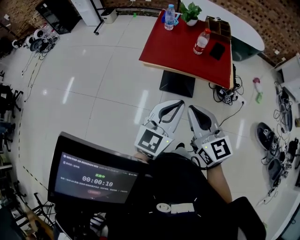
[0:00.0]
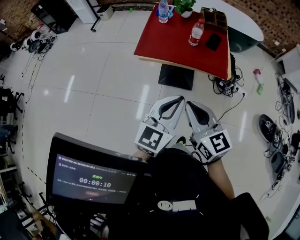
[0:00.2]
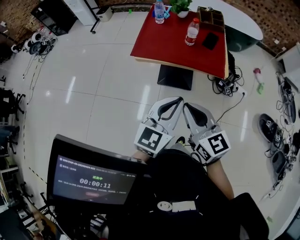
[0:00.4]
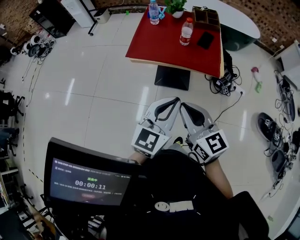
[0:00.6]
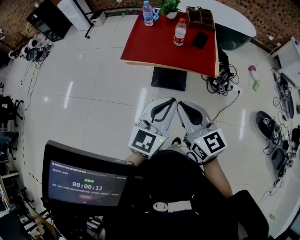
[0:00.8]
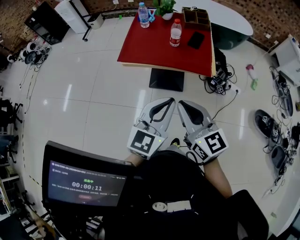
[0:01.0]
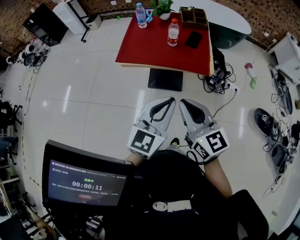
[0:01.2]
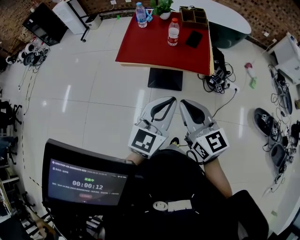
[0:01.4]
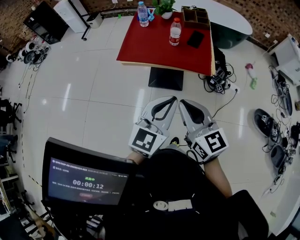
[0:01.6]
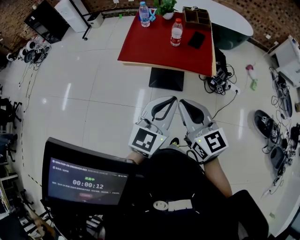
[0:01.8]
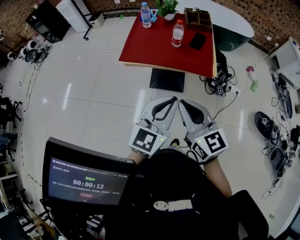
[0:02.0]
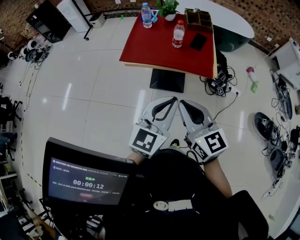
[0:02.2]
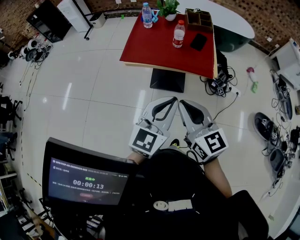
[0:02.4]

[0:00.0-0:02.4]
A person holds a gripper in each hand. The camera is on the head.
0:00.0 to 0:01.2: Both grippers move to the right, some 10 cm.
0:01.2 to 0:02.4: The grippers move only a little.

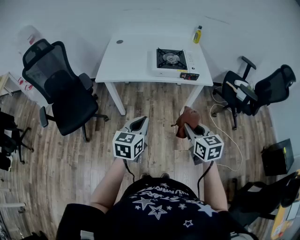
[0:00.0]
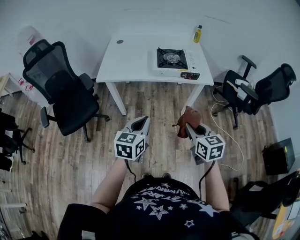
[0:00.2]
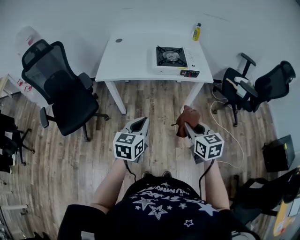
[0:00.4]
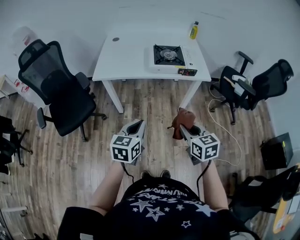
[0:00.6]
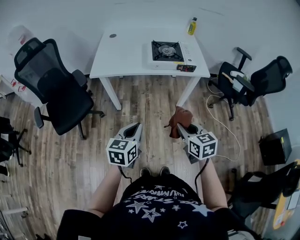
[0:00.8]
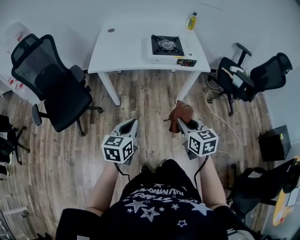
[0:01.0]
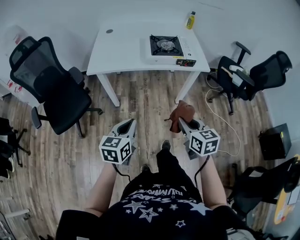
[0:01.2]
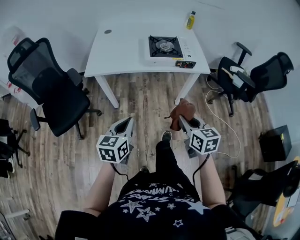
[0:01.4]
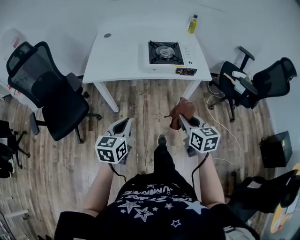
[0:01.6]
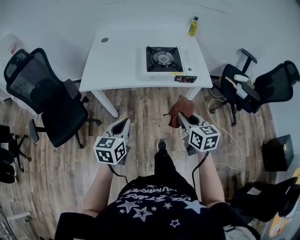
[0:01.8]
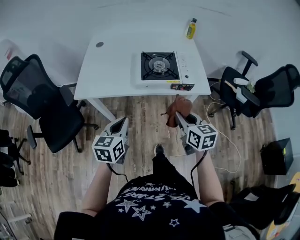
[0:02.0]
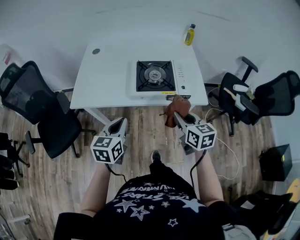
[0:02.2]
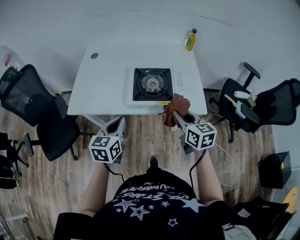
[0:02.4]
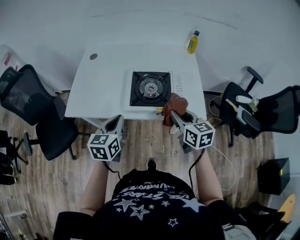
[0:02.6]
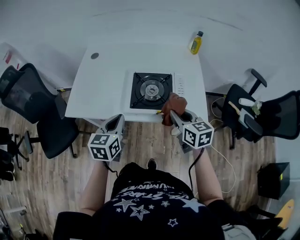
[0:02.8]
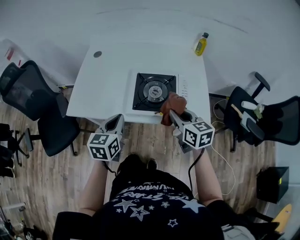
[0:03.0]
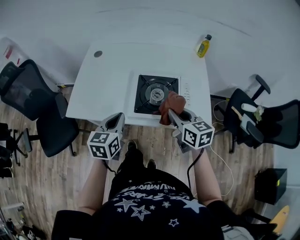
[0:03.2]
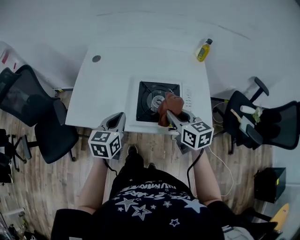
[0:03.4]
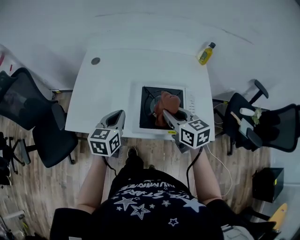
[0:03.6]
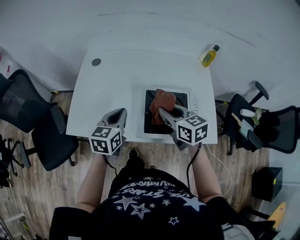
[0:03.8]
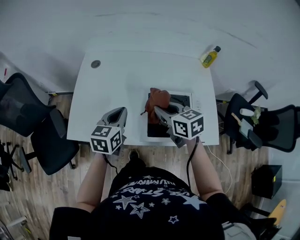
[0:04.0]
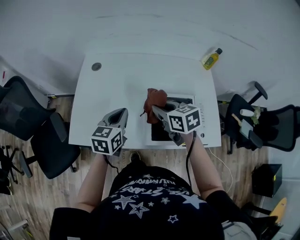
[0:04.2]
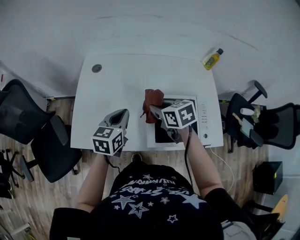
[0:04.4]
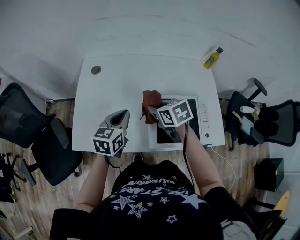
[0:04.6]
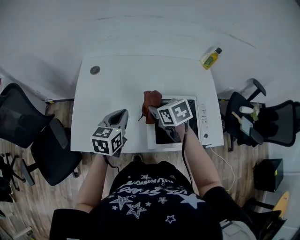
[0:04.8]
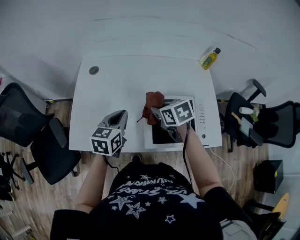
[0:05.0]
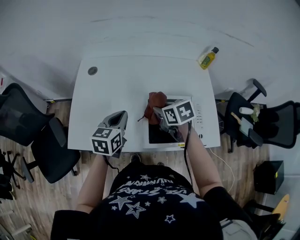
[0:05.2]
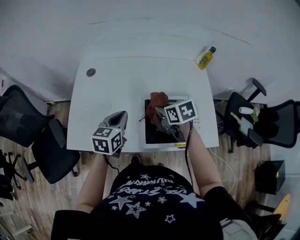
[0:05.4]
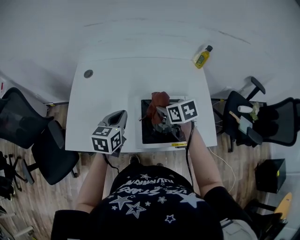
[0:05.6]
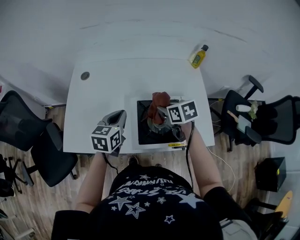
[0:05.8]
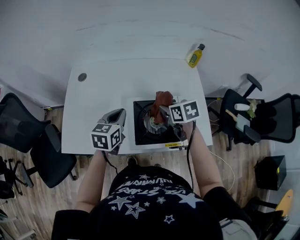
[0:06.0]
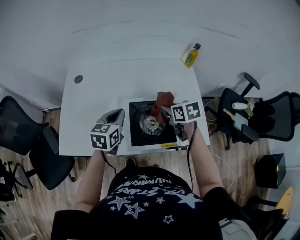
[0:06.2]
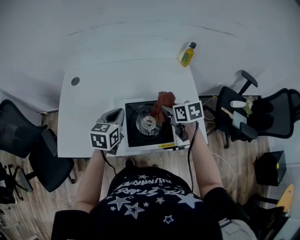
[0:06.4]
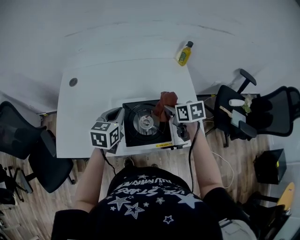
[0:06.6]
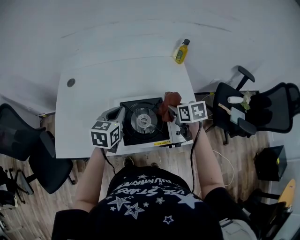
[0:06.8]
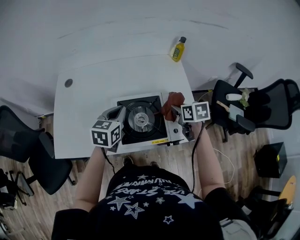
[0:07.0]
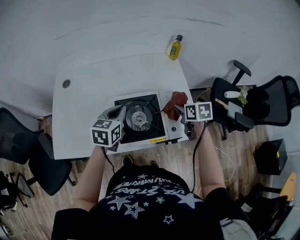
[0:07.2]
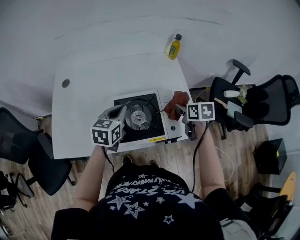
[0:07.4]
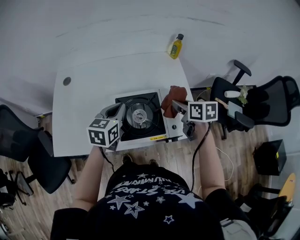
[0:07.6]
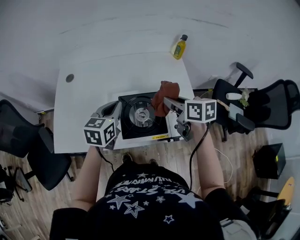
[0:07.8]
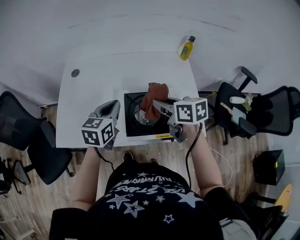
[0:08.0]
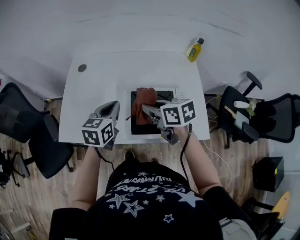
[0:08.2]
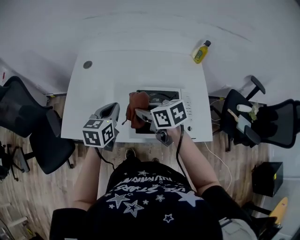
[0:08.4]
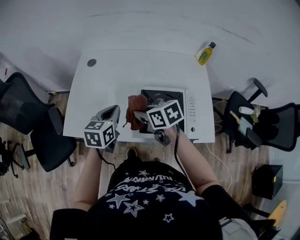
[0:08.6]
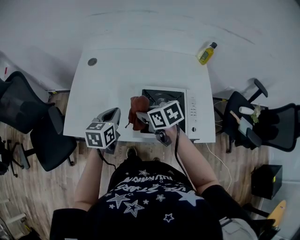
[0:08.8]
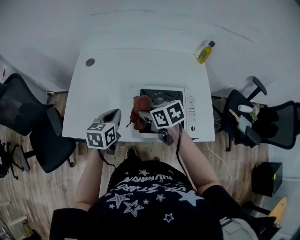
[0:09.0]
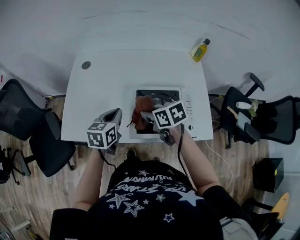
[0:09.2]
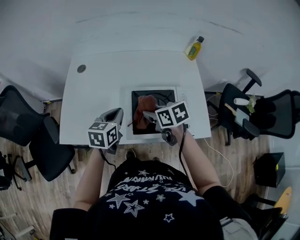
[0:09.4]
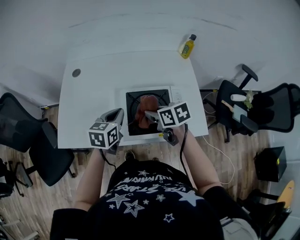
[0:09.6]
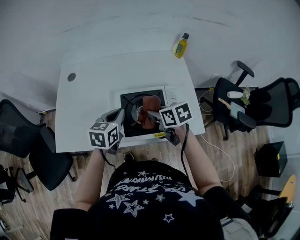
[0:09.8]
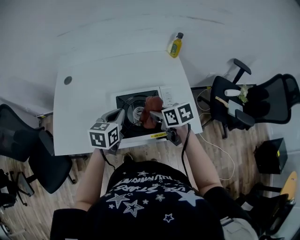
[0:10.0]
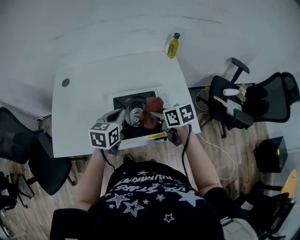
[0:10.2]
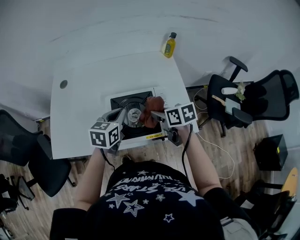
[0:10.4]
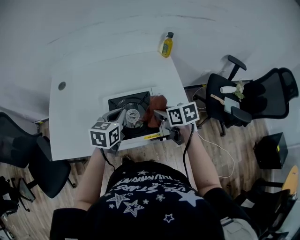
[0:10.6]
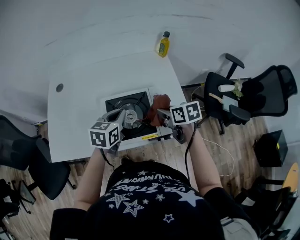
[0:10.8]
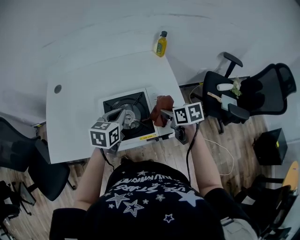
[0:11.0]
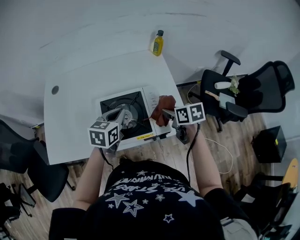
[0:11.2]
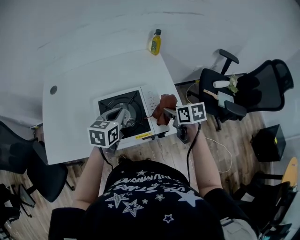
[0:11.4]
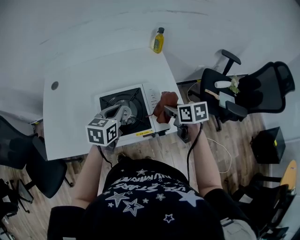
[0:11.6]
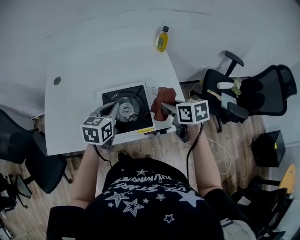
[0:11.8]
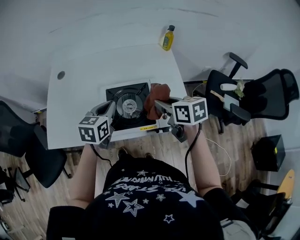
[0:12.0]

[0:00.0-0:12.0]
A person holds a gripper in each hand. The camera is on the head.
0:00.0 to 0:01.6: The left gripper heads forward, covering some 5 cm; the right gripper travels forward by roughly 10 cm.
0:01.6 to 0:03.0: Both grippers move forward, some 30 cm.
0:03.0 to 0:04.4: The right gripper heads forward and to the left, covering approximately 30 cm, and rotates roughly 20 degrees. Meanwhile the left gripper goes approximately 20 cm forward.
0:04.4 to 0:06.0: The left gripper is displaced to the right by approximately 10 cm. The right gripper moves to the right, some 15 cm.
0:06.0 to 0:07.6: The right gripper moves to the right, about 15 cm. The left gripper shifts approximately 10 cm to the right.
0:07.6 to 0:09.0: The right gripper ends up roughly 25 cm from where it was, and swivels approximately 30 degrees. The left gripper shifts by approximately 15 cm.
0:09.0 to 0:10.4: The two grippers go roughly 15 cm to the right. The right gripper swivels approximately 20 degrees.
0:10.4 to 0:12.0: The right gripper travels upward by about 5 cm, and moves roughly 10 cm to the right and comes back.

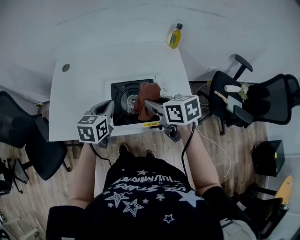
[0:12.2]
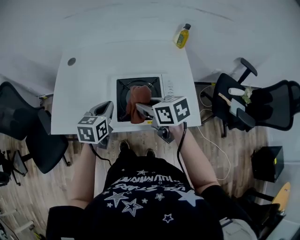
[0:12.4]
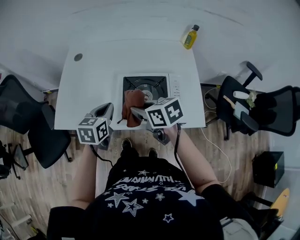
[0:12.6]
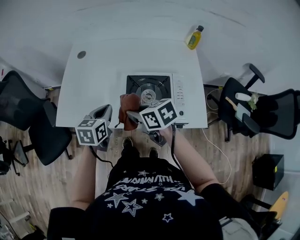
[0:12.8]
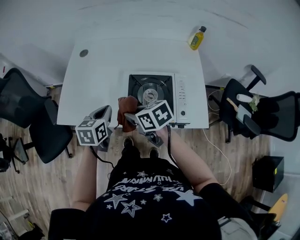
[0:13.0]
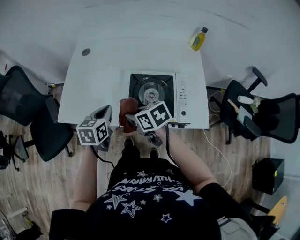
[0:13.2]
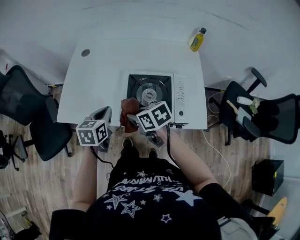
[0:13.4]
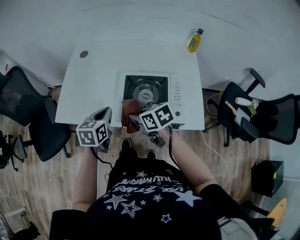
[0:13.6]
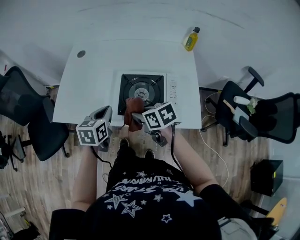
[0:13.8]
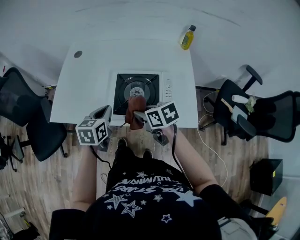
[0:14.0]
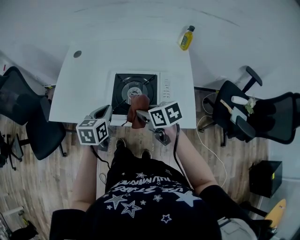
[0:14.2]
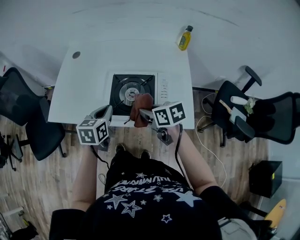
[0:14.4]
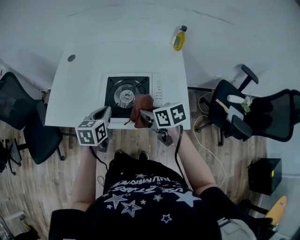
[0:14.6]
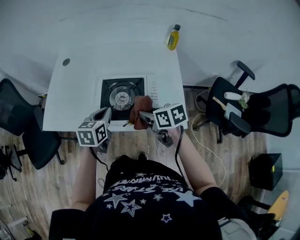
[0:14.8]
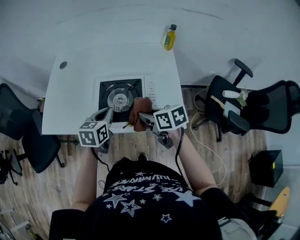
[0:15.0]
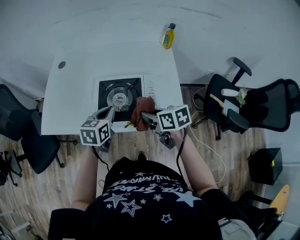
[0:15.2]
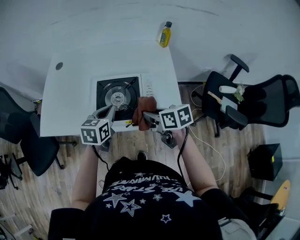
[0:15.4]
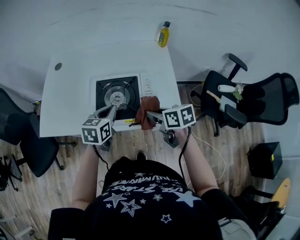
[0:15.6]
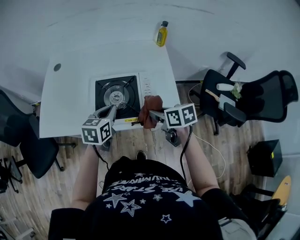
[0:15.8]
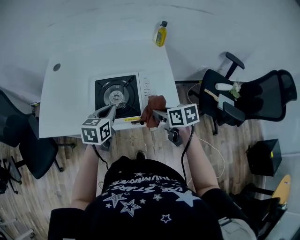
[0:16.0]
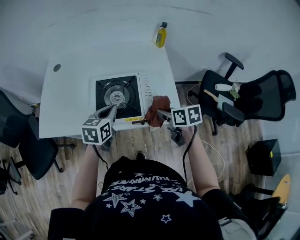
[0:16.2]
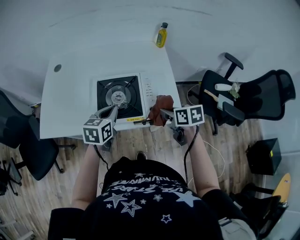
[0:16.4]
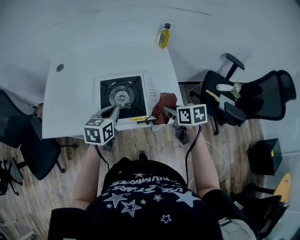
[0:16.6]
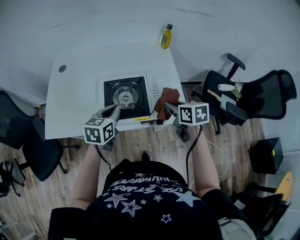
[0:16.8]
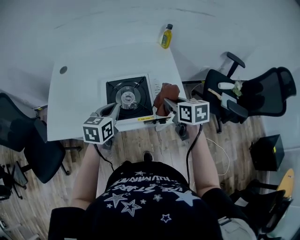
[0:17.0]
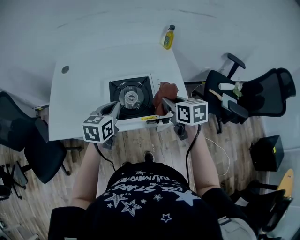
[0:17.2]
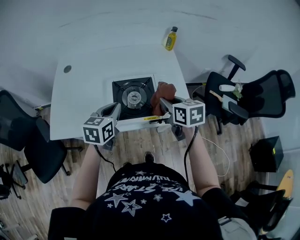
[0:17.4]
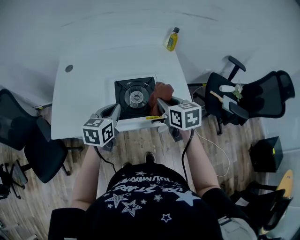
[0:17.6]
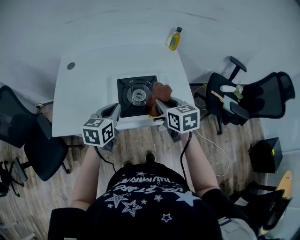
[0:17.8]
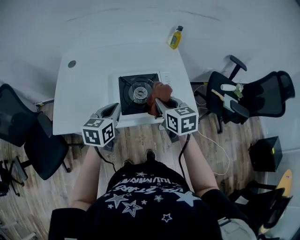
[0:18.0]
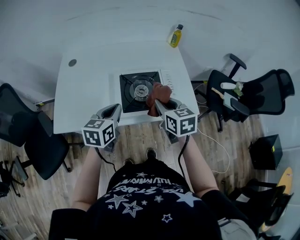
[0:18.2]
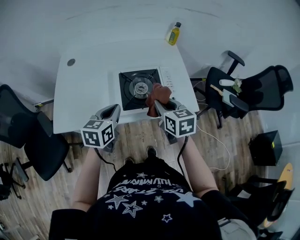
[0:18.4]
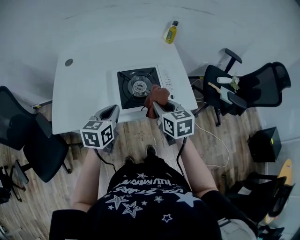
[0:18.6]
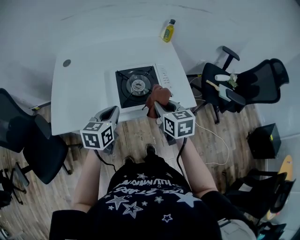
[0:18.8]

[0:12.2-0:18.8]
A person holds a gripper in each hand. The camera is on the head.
0:12.2 to 0:13.8: The left gripper is displaced to the left by some 5 cm. The right gripper is displaced to the left and downward by roughly 15 cm.
0:13.8 to 0:15.4: Both grippers travel together to the right, about 15 cm.
0:15.4 to 0:17.2: The left gripper ends up some 5 cm from where it was; the right gripper heads upward, covering approximately 5 cm, and changes its angle by roughly 20 degrees.
0:17.2 to 0:18.8: The left gripper is displaced backward and to the left by some 10 cm, while the right gripper travels to the left and backward by about 10 cm.

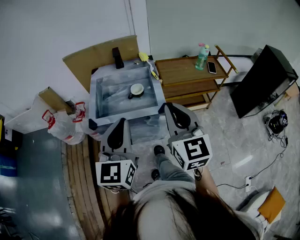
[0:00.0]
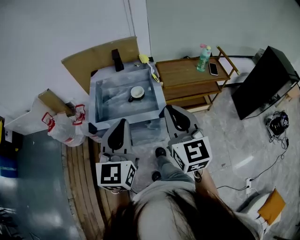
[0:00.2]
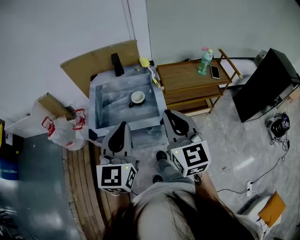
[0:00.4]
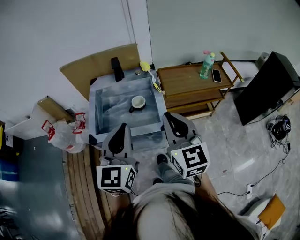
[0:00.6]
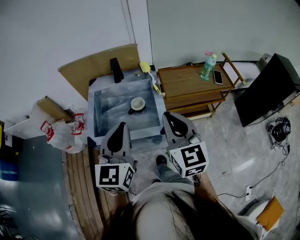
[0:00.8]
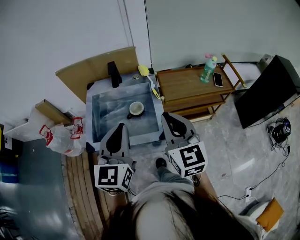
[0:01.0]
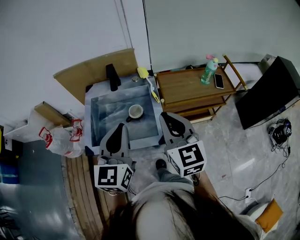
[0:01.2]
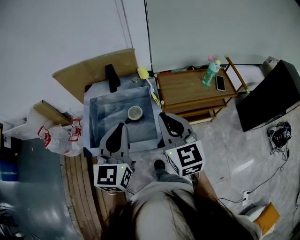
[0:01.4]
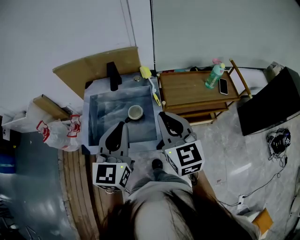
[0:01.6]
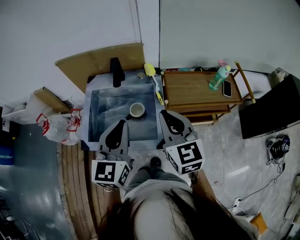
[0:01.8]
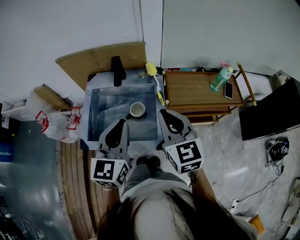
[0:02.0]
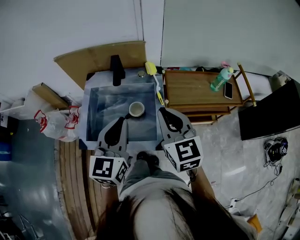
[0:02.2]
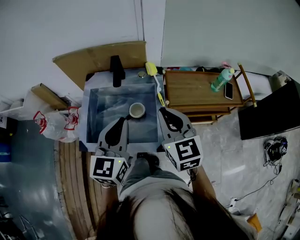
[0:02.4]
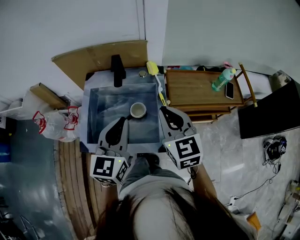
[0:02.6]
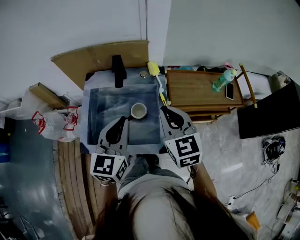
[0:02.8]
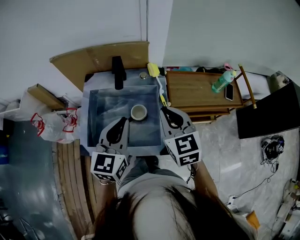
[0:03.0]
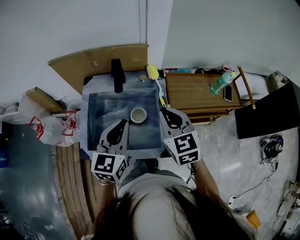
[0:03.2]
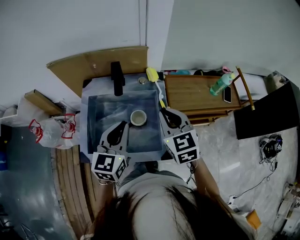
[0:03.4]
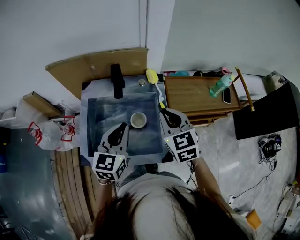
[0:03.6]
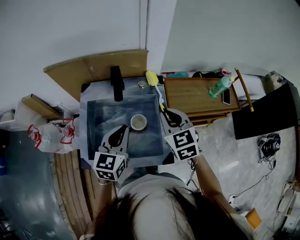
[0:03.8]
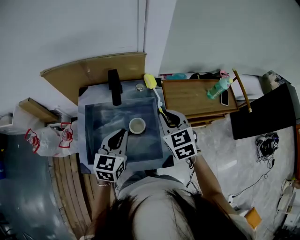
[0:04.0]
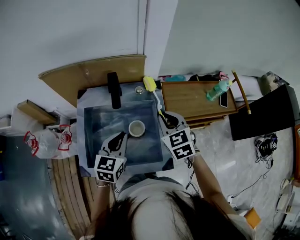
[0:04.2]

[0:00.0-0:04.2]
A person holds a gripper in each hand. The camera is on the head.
0:00.0 to 0:01.4: The grippers both shift forward by about 20 cm.
0:01.4 to 0:02.8: The right gripper is displaced forward by approximately 10 cm. Meanwhile the left gripper heads forward and downward, covering roughly 10 cm.
0:02.8 to 0:04.2: The right gripper is displaced forward and downward by approximately 10 cm. The left gripper shifts some 15 cm downward and forward.
